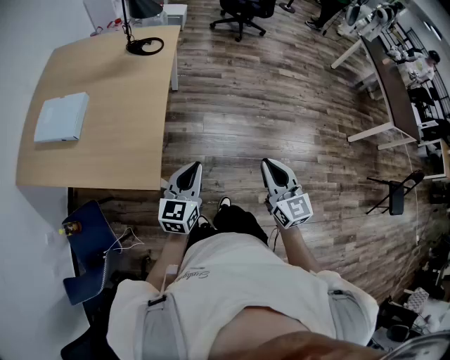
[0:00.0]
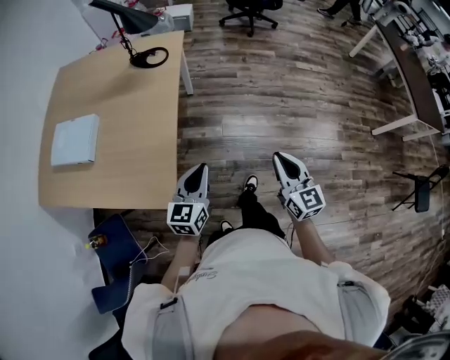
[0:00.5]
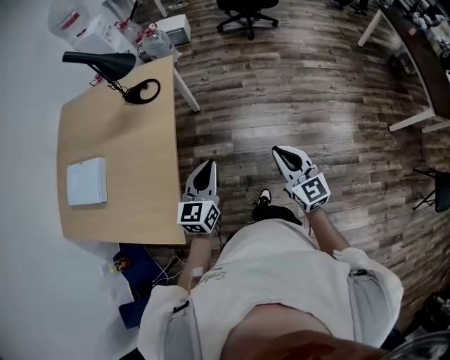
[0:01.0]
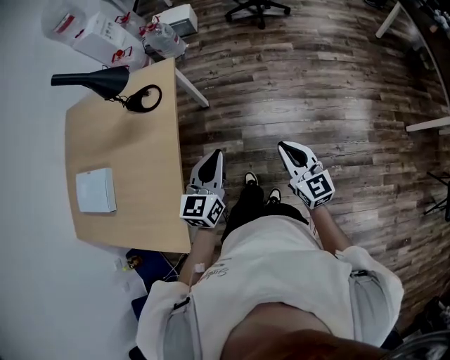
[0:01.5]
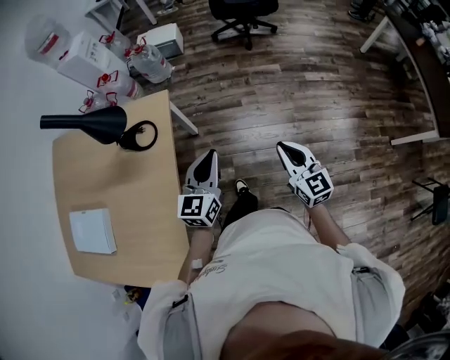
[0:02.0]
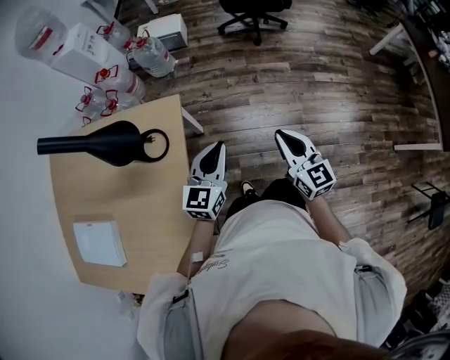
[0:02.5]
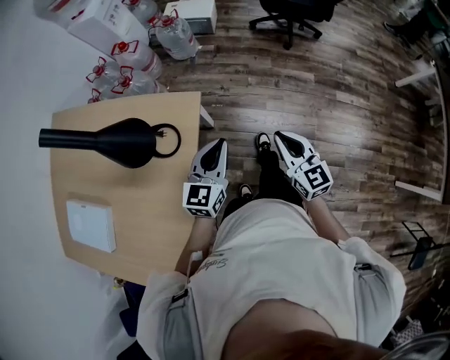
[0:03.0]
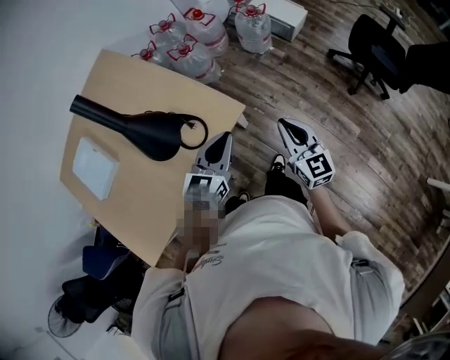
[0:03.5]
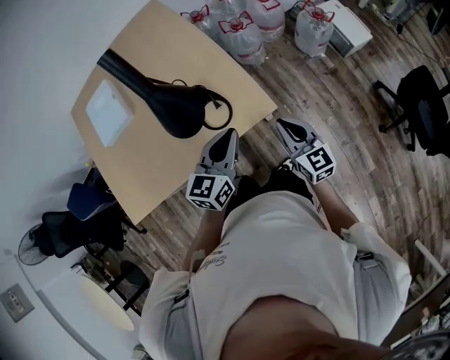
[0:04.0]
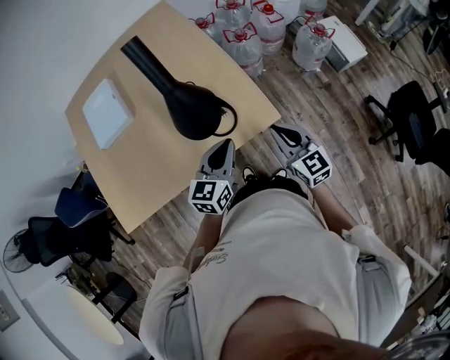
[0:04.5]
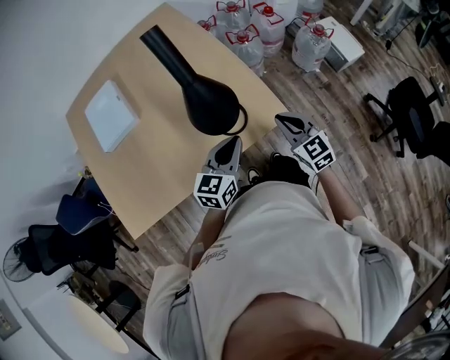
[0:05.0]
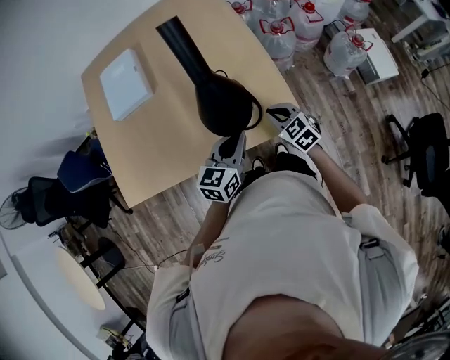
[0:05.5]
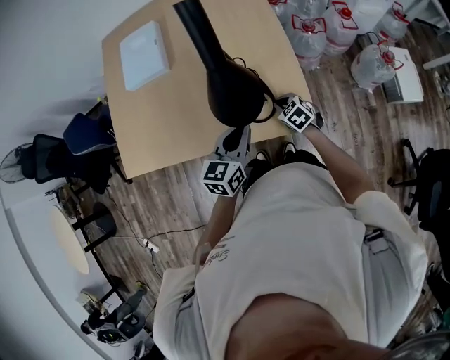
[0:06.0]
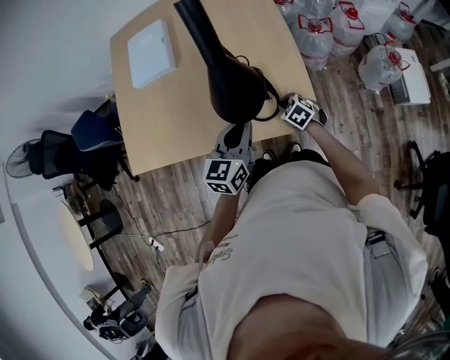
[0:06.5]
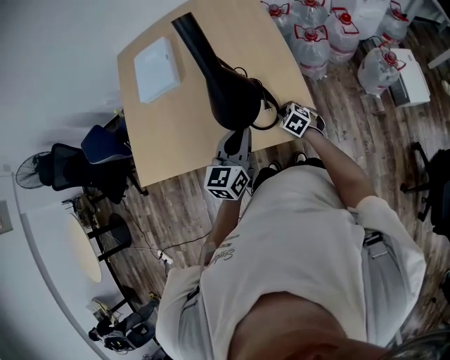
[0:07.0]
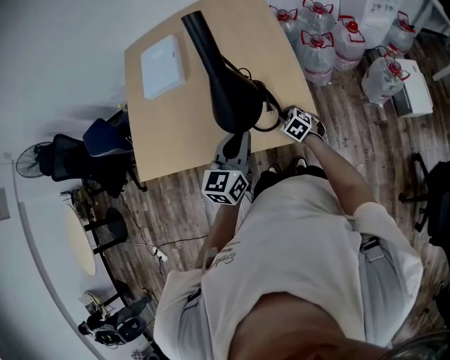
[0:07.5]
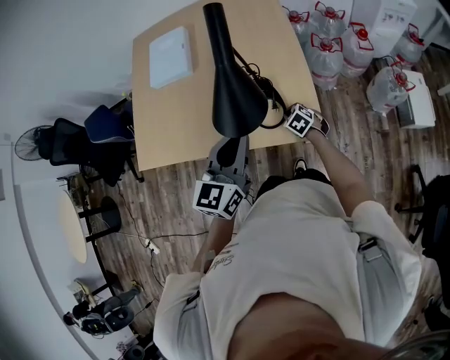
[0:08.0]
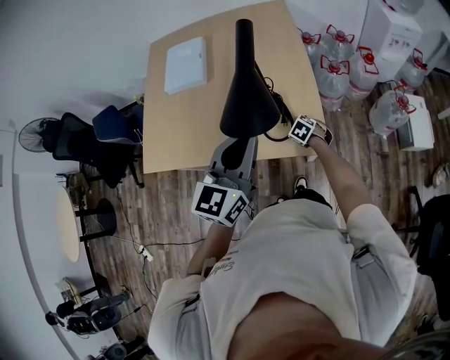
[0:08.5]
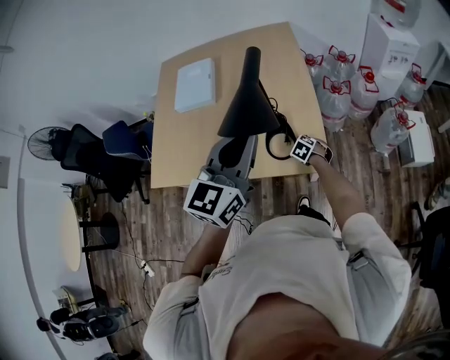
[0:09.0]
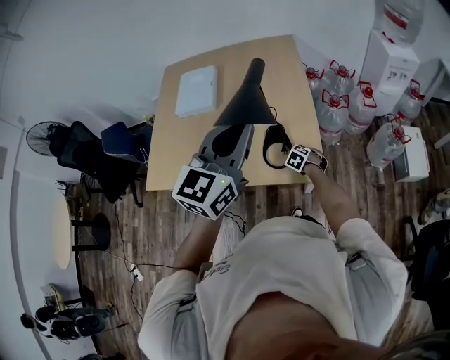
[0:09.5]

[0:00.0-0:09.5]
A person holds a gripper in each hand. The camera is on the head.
0.0 to 2.0 s: The pair of grippers is taken forward, approximately 50 cm.
2.0 to 4.0 s: The left gripper shifts by roughly 35 cm, and changes its angle by approximately 60 degrees, while the right gripper shifts by about 50 cm, and swivels approximately 70 degrees.
4.0 to 5.5 s: The left gripper is displaced to the left and downward by roughly 10 cm; the right gripper shifts approximately 20 cm to the left, forward and downward, and turns by roughly 40 degrees.
5.5 to 7.5 s: The right gripper goes about 10 cm downward; the left gripper shifts approximately 5 cm upward.
7.5 to 9.5 s: The right gripper changes its angle by roughly 20 degrees. Meanwhile the left gripper moves upward, some 25 cm.

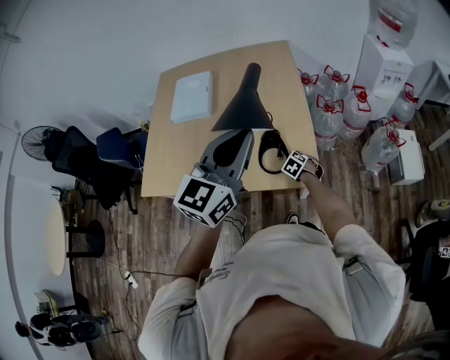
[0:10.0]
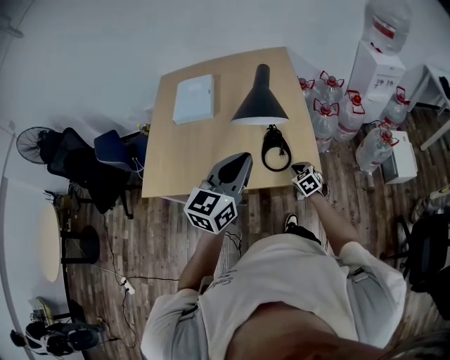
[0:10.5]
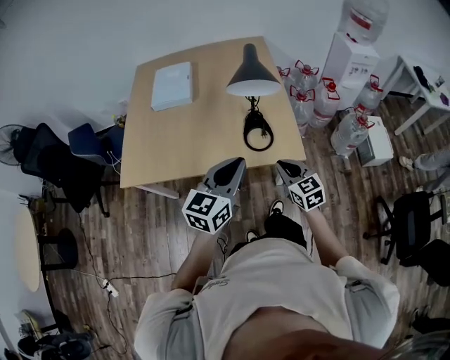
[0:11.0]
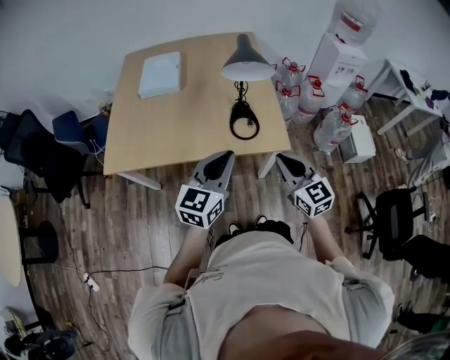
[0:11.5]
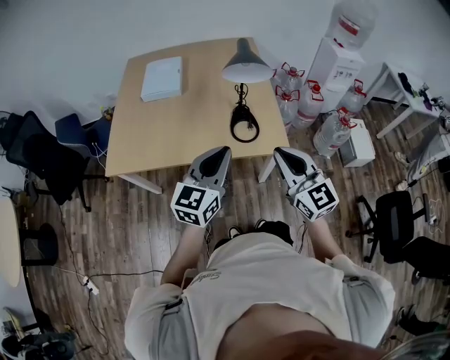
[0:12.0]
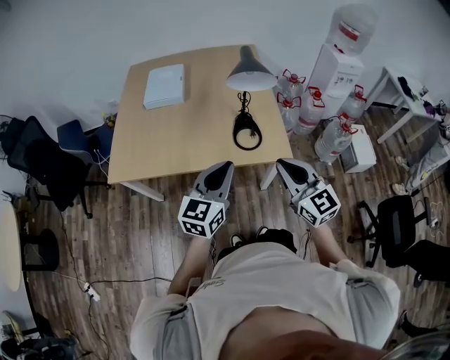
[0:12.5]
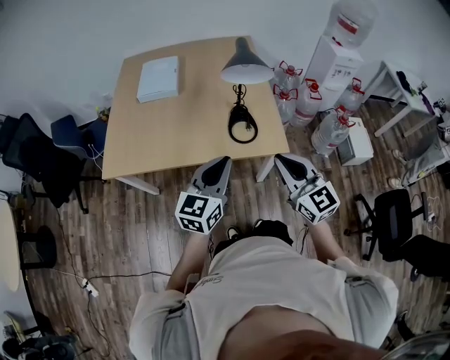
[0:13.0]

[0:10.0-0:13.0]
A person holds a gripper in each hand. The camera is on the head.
10.0 to 11.5 s: The left gripper shifts some 25 cm backward, downward and to the left. The right gripper travels upward and backward by roughly 40 cm, and tilts its fingers some 50 degrees upward.
11.5 to 13.0 s: The right gripper moves upward, about 5 cm.

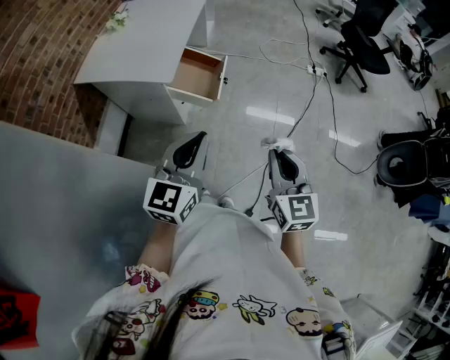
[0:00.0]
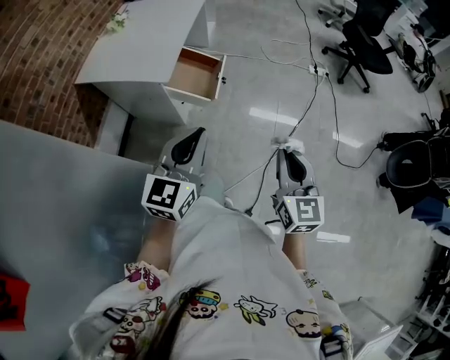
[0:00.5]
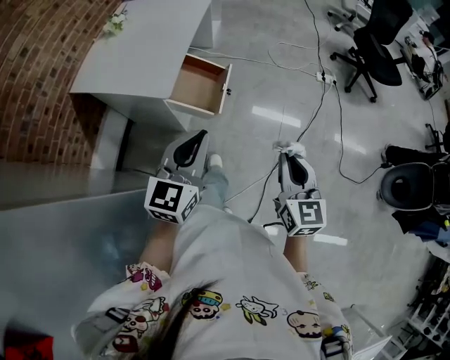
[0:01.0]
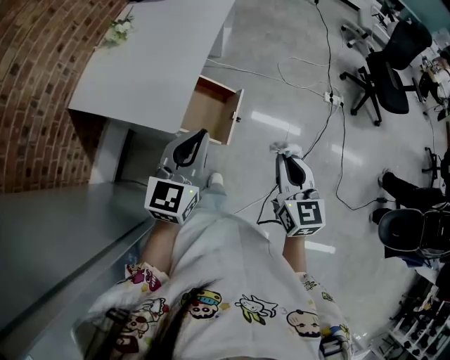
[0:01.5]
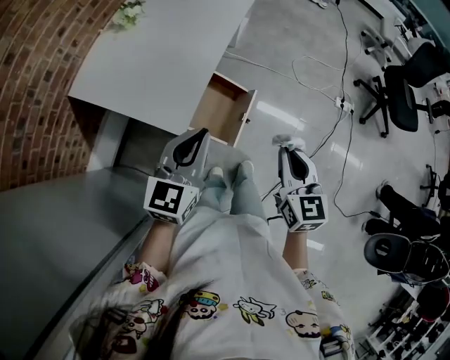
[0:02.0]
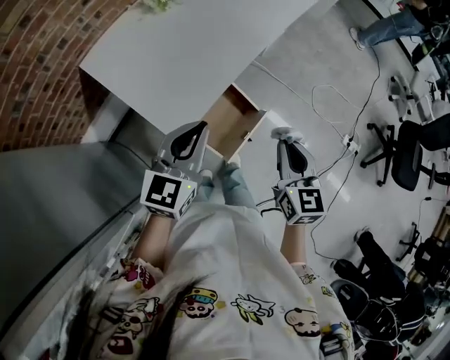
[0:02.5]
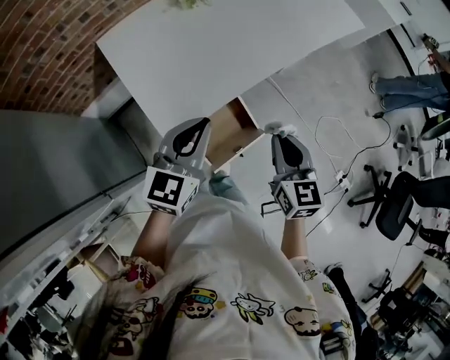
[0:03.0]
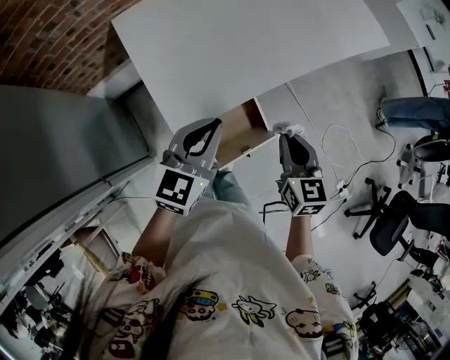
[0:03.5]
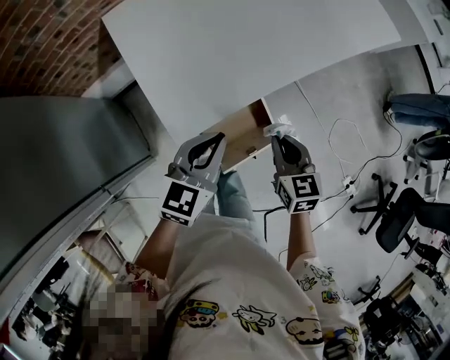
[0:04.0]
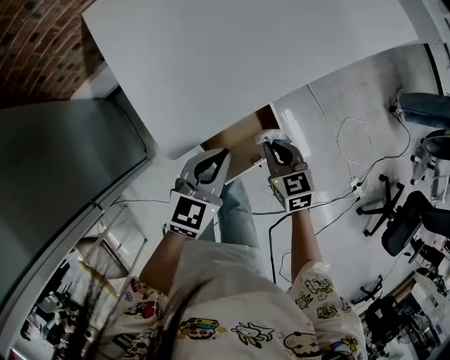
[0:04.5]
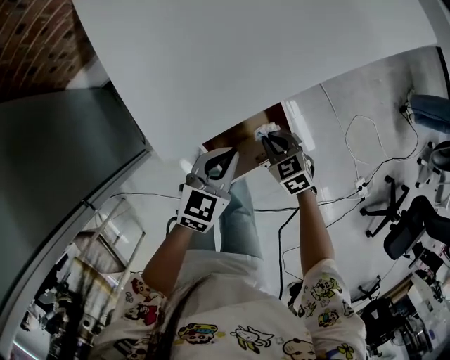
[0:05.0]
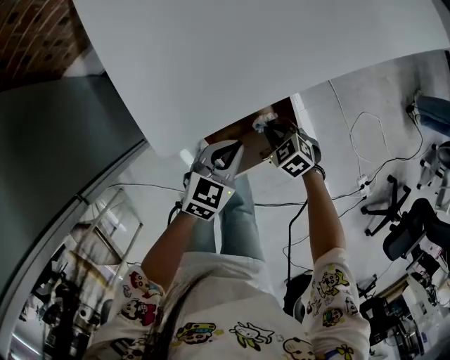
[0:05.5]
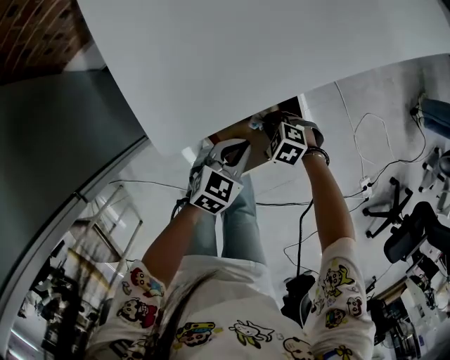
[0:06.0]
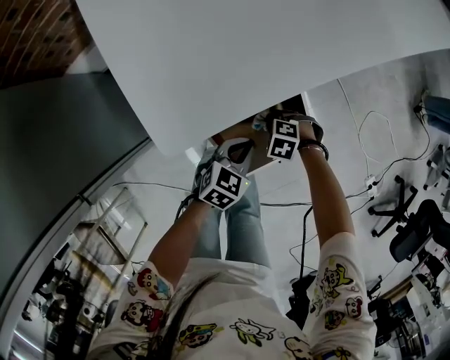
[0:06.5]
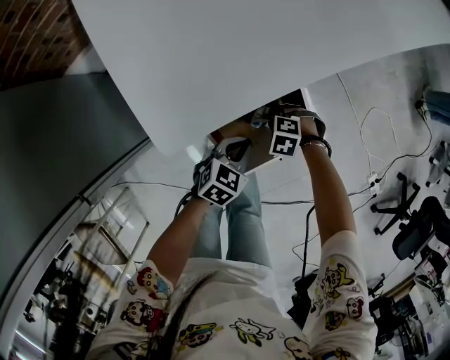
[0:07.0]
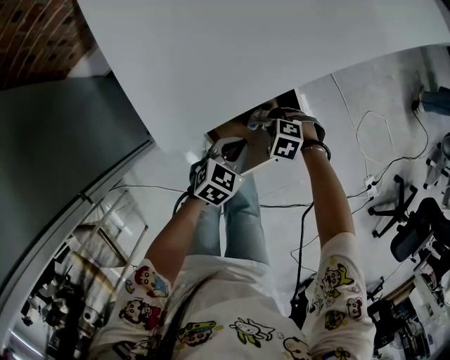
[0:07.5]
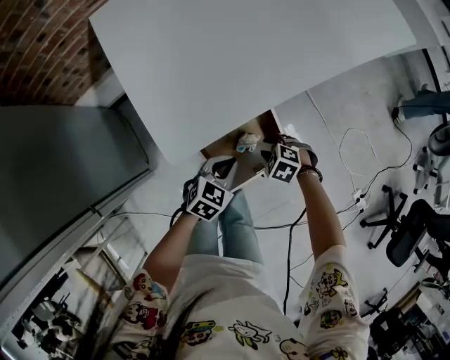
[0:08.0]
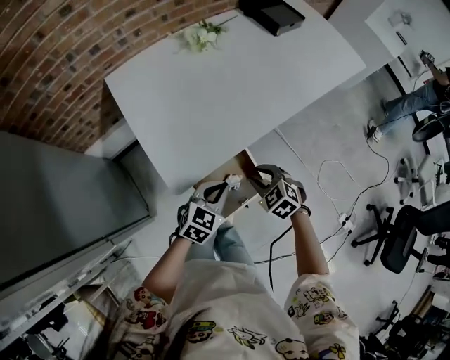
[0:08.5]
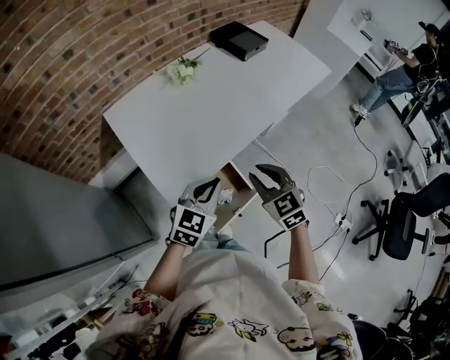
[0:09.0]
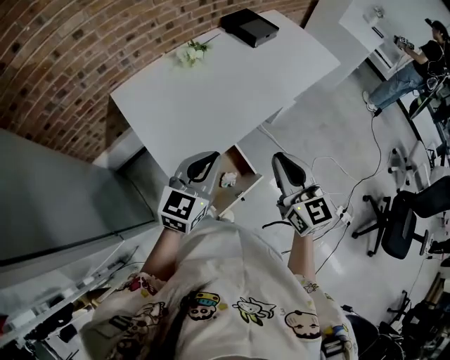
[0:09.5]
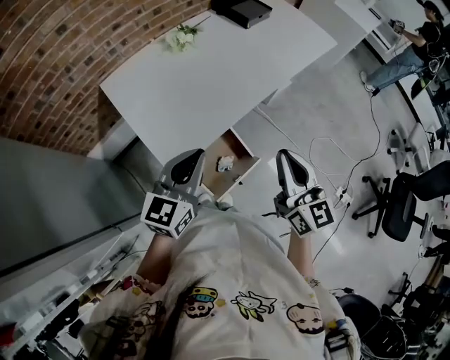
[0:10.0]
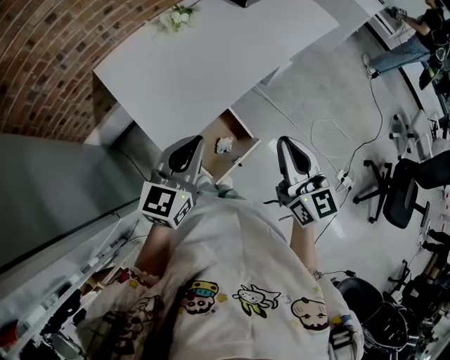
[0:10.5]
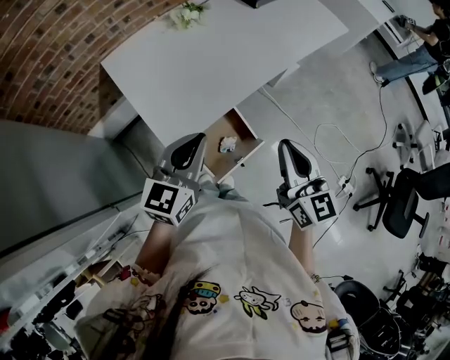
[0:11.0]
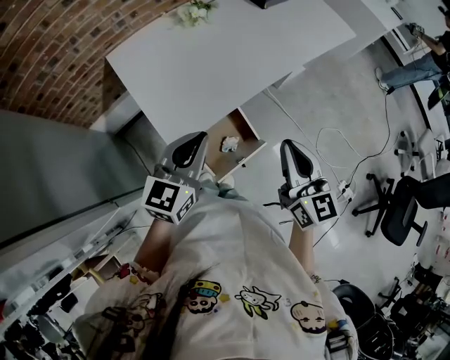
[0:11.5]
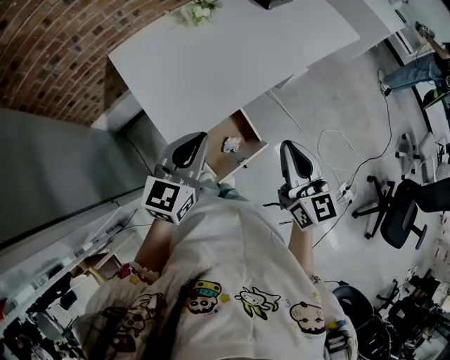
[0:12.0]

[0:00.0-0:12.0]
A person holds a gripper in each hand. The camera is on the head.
0.0 to 2.0 s: Both grippers move forward, roughly 35 cm.
2.0 to 4.0 s: The right gripper changes place by approximately 30 cm, and swivels some 50 degrees, while the left gripper shifts by approximately 15 cm, and swivels some 30 degrees.
4.0 to 6.0 s: Both grippers travel together downward, about 30 cm. The right gripper angles its fingers downward, by some 40 degrees. The left gripper swivels about 20 degrees.
6.0 to 8.0 s: The right gripper is displaced upward by approximately 10 cm, and opens.
8.0 to 10.0 s: Both grippers travel together upward, about 40 cm. The right gripper angles its fingers upward, by approximately 70 degrees, and closes. Meanwhile the left gripper tilts its fingers approximately 30 degrees upward.
10.0 to 12.0 s: The grippers stay close to where they were, moving slightly.

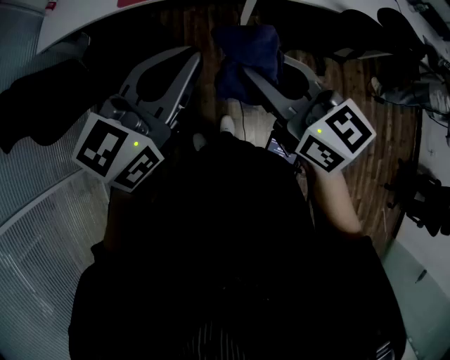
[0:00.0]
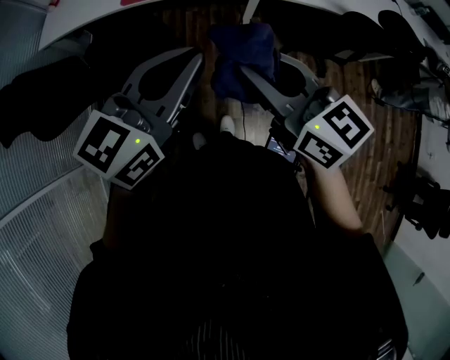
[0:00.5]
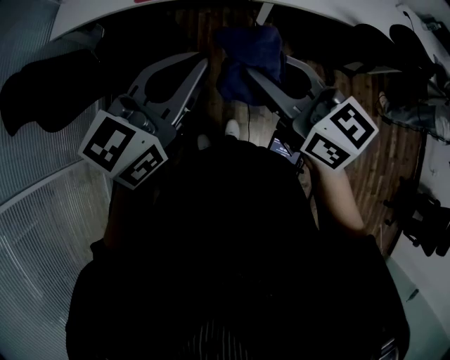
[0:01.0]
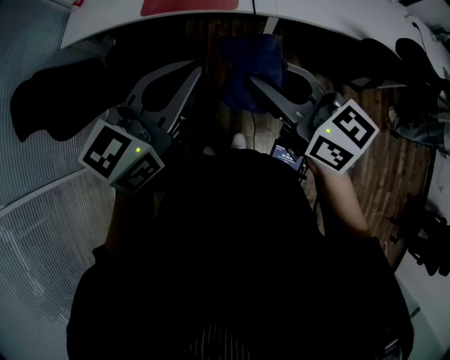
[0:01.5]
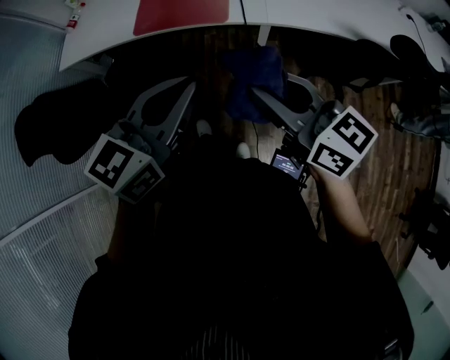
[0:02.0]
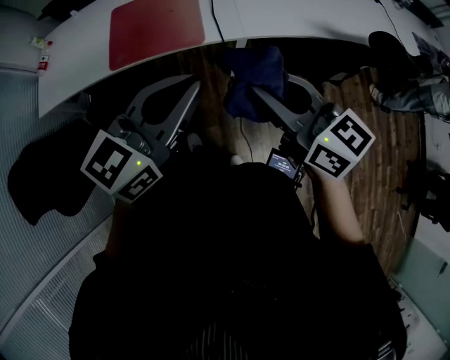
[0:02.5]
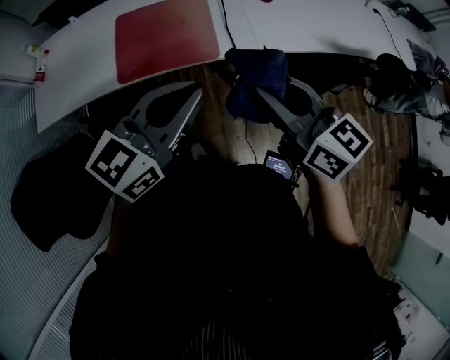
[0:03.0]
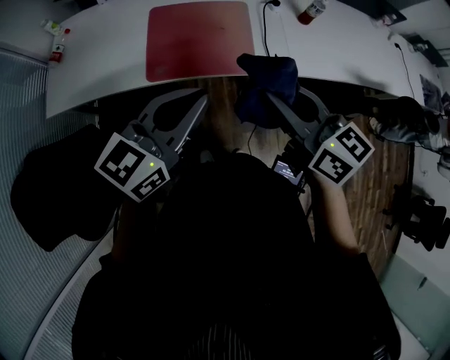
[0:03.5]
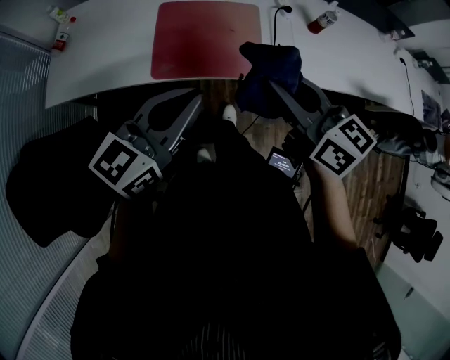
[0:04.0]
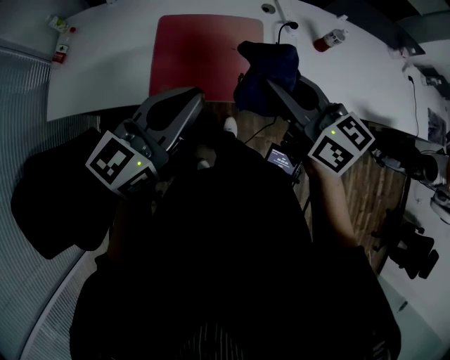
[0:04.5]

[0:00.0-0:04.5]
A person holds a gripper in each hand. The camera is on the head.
0.0 to 2.0 s: The left gripper goes about 5 cm forward, while the right gripper is displaced forward and to the right by some 10 cm.
2.0 to 4.5 s: Both grippers travel together forward and to the left, roughly 40 cm.
